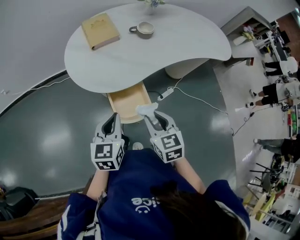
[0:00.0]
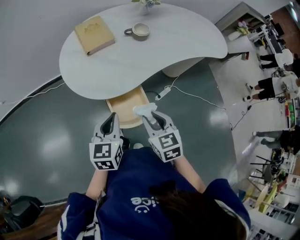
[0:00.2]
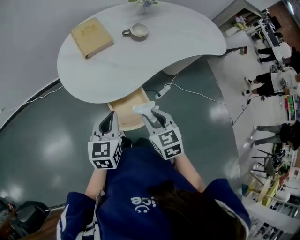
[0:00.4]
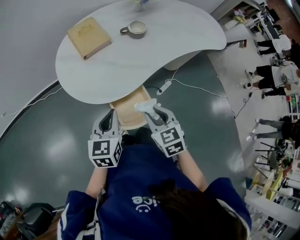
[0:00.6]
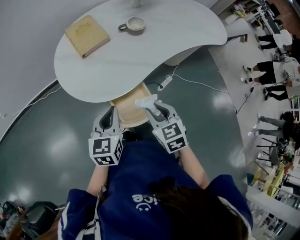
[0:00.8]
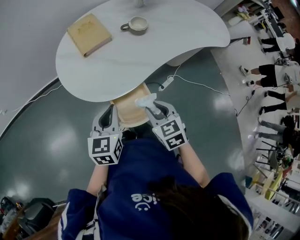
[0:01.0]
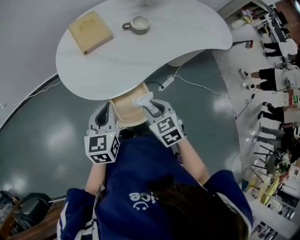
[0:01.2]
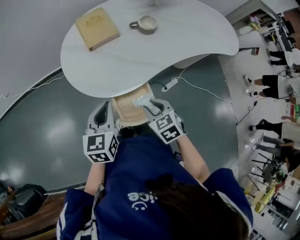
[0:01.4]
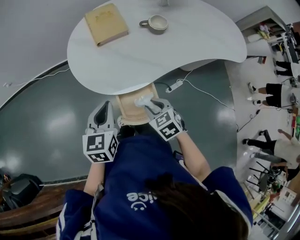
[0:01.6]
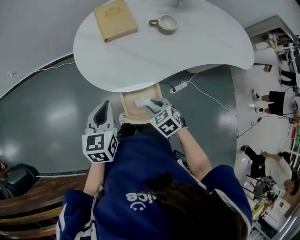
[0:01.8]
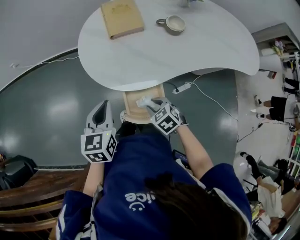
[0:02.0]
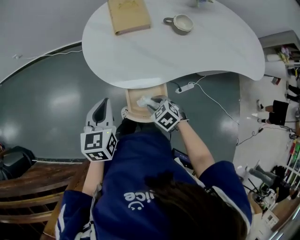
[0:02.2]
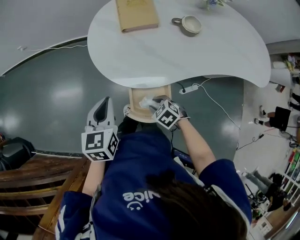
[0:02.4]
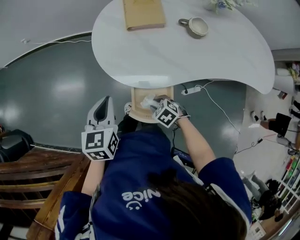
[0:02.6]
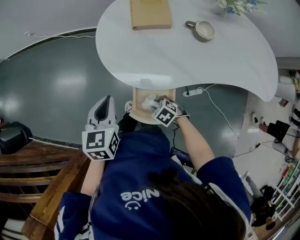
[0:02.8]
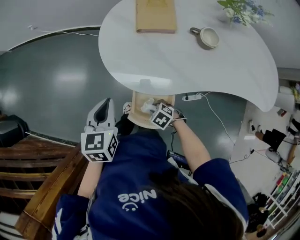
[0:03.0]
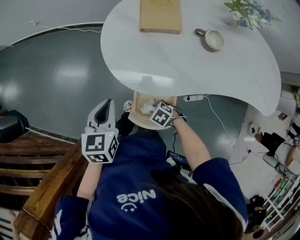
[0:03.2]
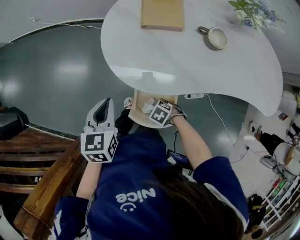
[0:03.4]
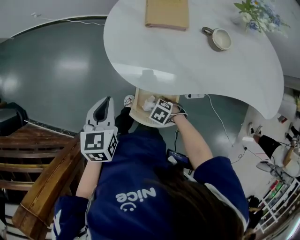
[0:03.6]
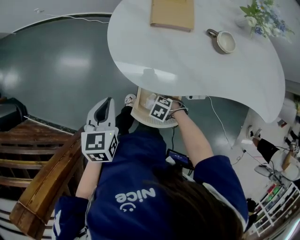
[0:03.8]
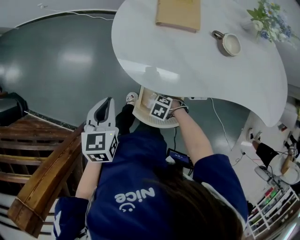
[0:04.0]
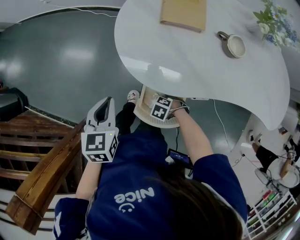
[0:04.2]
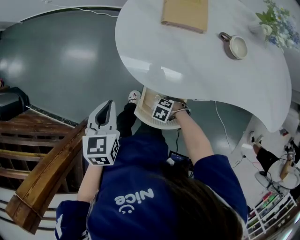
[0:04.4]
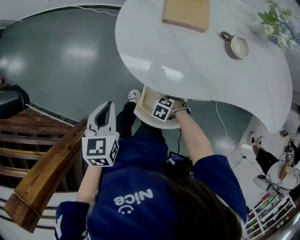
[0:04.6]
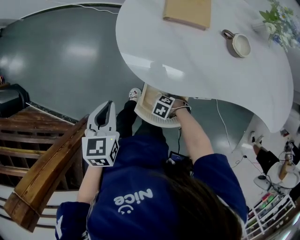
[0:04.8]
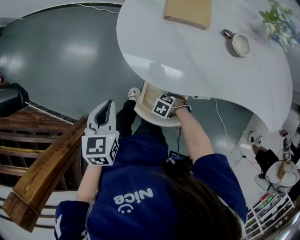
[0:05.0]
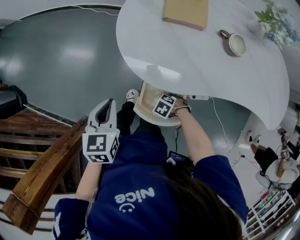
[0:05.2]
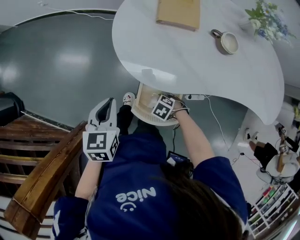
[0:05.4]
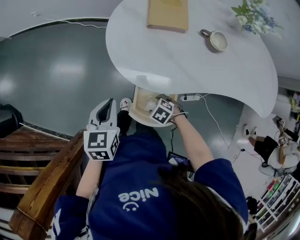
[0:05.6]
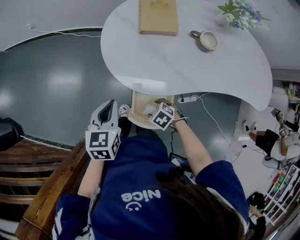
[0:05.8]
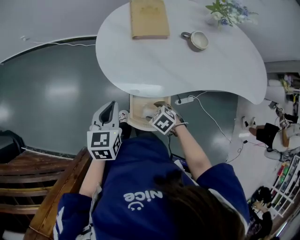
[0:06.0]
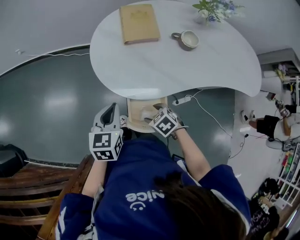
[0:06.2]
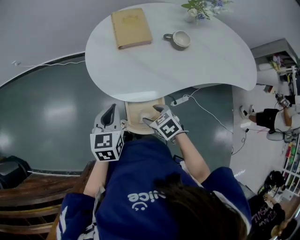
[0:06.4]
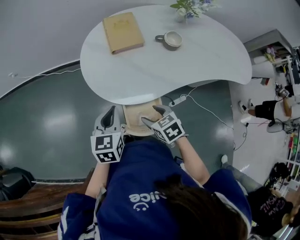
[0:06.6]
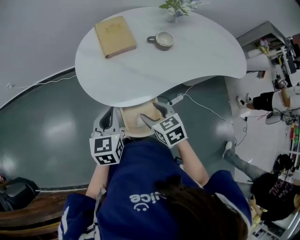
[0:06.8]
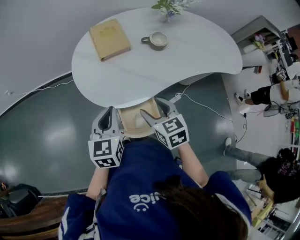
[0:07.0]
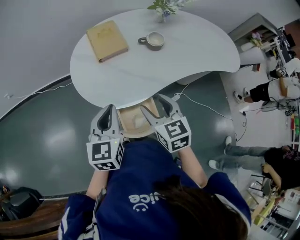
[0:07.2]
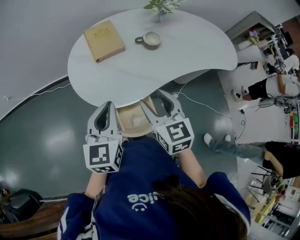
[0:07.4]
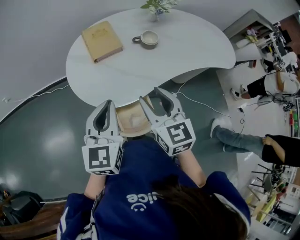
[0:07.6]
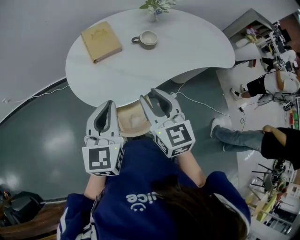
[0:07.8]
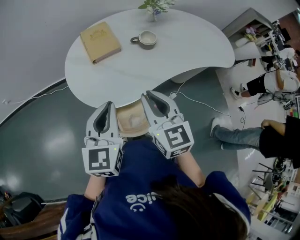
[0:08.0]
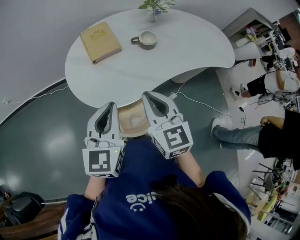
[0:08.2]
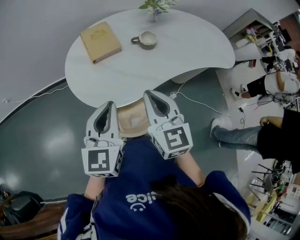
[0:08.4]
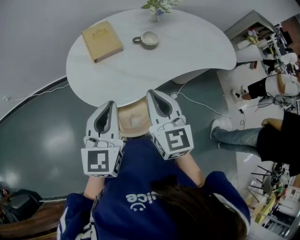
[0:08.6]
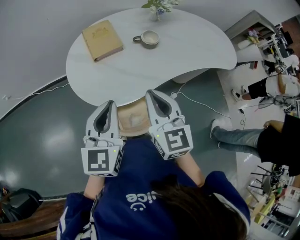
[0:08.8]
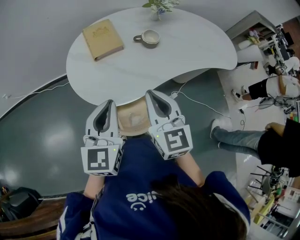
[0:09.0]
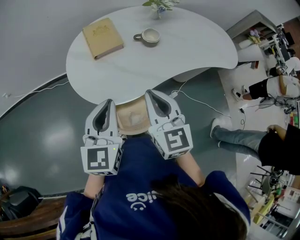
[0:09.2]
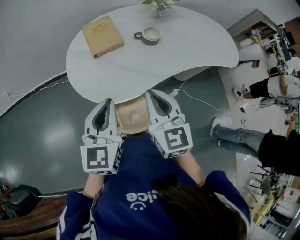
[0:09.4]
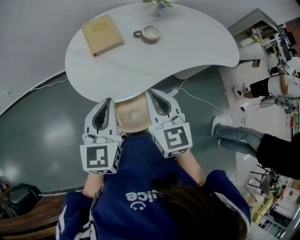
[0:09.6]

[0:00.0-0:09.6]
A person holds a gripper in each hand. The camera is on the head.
0:00.0 to 0:01.6: The right gripper goes roughly 10 cm downward and forward, and swivels approximately 30 degrees; the left gripper goes roughly 5 cm forward.
0:01.6 to 0:03.2: The right gripper shifts some 20 cm downward, and turns by some 50 degrees. Meanwhile the left gripper moves approximately 5 cm, and rotates roughly 20 degrees.
0:03.2 to 0:04.8: The right gripper shifts roughly 5 cm downward, and changes its angle by roughly 20 degrees. The left gripper moves roughly 5 cm.
0:04.8 to 0:06.4: The left gripper shifts by roughly 10 cm, and changes its angle by some 20 degrees, while the right gripper is displaced upward by approximately 20 cm, changes its angle by some 60 degrees, and opens its fingers.
0:06.4 to 0:08.0: The left gripper moves upward, some 15 cm, and swivels about 20 degrees; the right gripper is displaced upward by some 25 cm, tilts its fingers approximately 40 degrees upward, and closes its fingers.
0:08.0 to 0:09.6: The grippers move only a little.

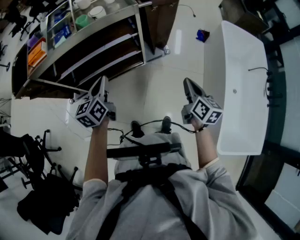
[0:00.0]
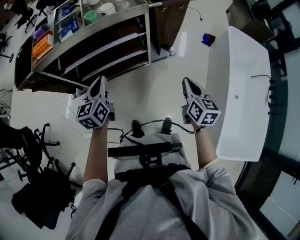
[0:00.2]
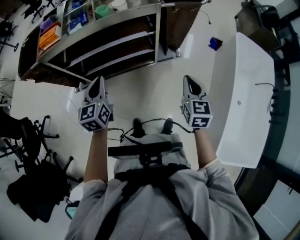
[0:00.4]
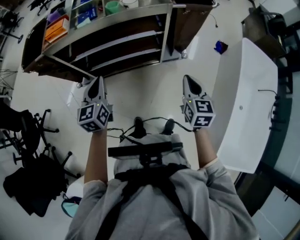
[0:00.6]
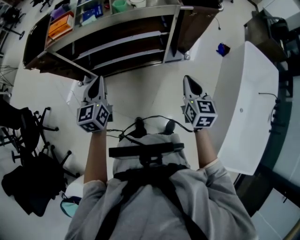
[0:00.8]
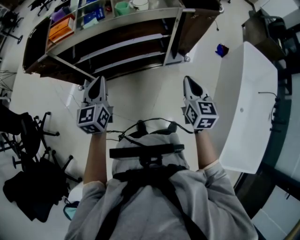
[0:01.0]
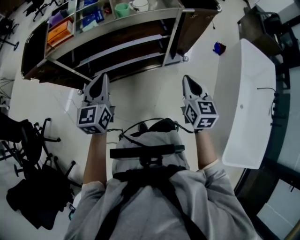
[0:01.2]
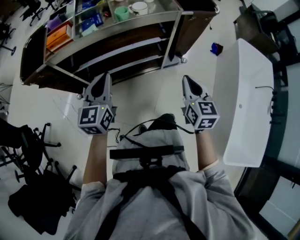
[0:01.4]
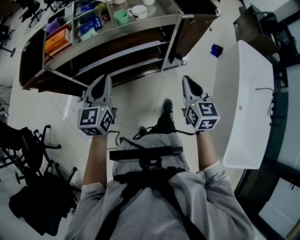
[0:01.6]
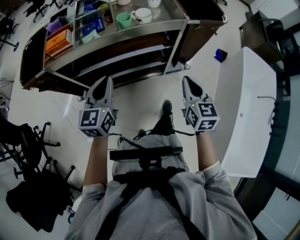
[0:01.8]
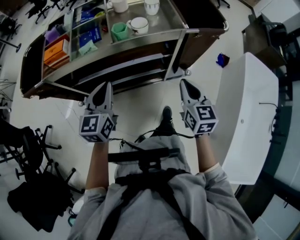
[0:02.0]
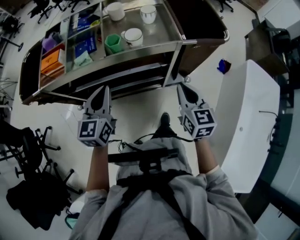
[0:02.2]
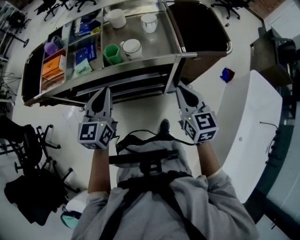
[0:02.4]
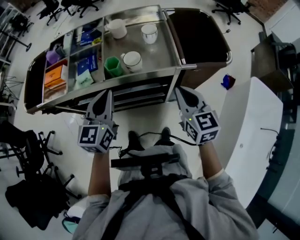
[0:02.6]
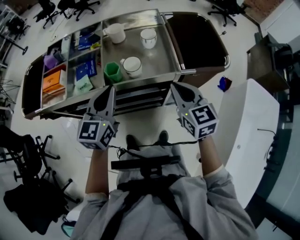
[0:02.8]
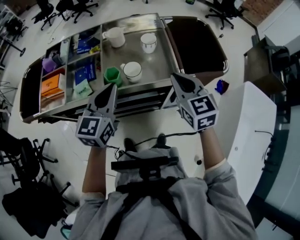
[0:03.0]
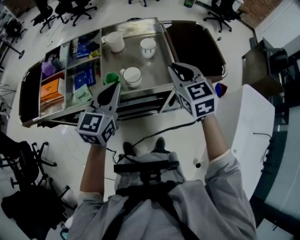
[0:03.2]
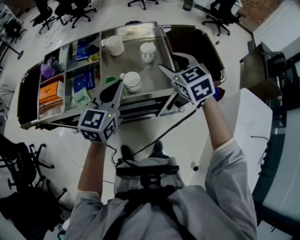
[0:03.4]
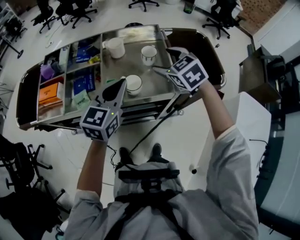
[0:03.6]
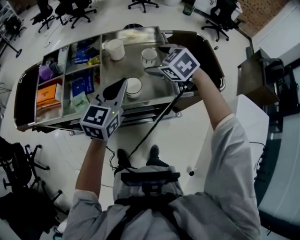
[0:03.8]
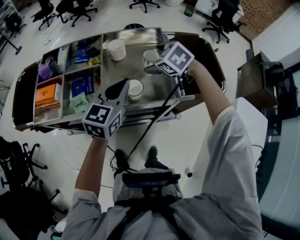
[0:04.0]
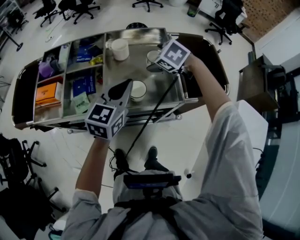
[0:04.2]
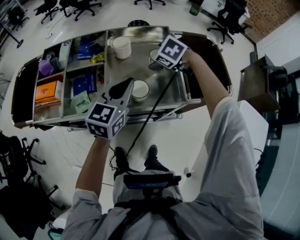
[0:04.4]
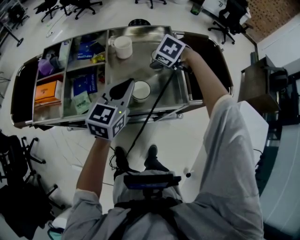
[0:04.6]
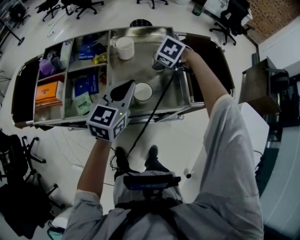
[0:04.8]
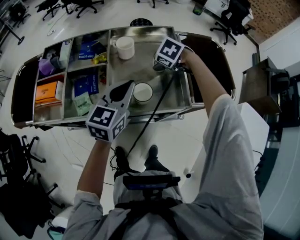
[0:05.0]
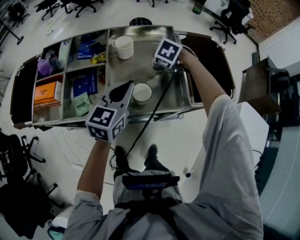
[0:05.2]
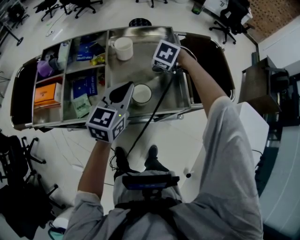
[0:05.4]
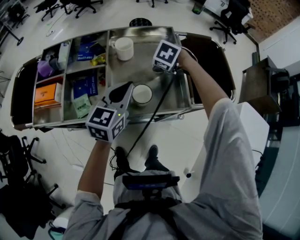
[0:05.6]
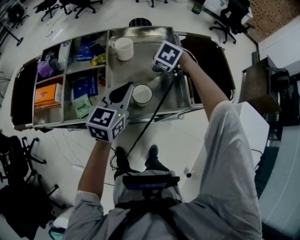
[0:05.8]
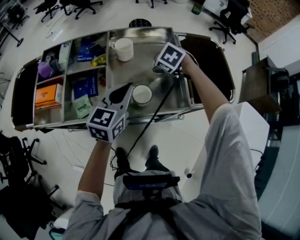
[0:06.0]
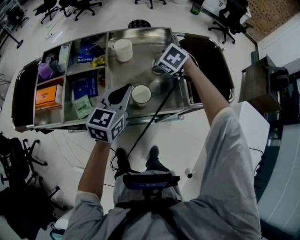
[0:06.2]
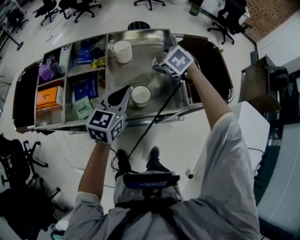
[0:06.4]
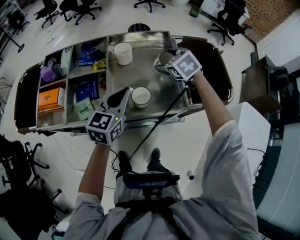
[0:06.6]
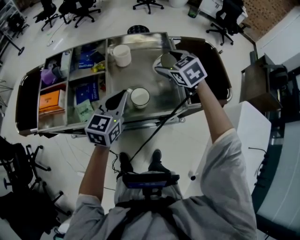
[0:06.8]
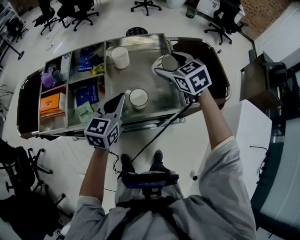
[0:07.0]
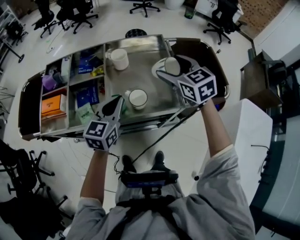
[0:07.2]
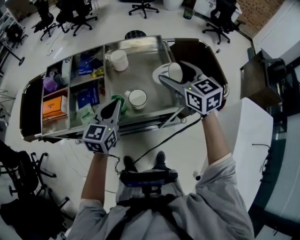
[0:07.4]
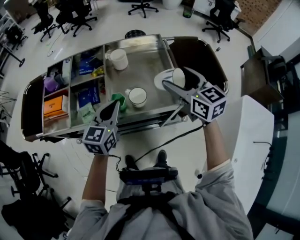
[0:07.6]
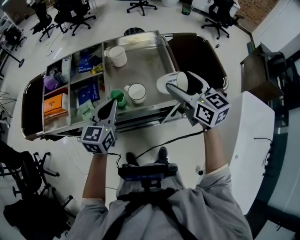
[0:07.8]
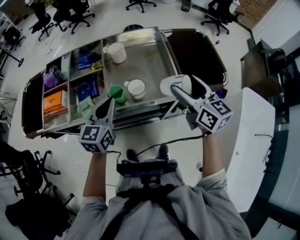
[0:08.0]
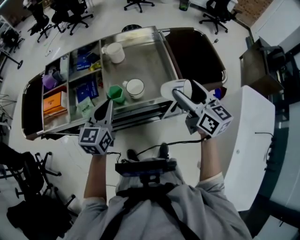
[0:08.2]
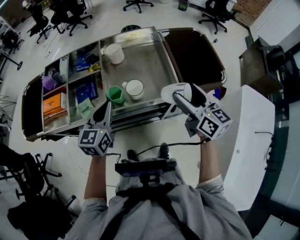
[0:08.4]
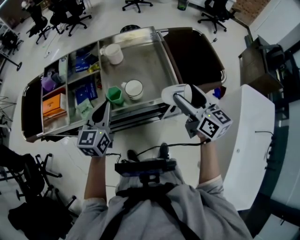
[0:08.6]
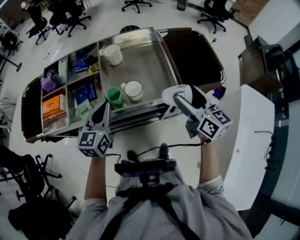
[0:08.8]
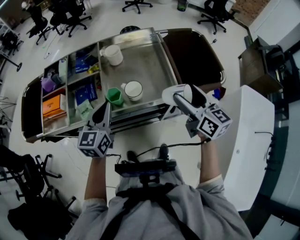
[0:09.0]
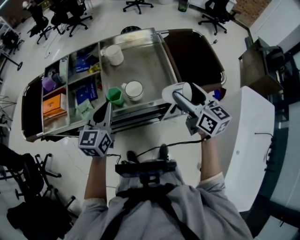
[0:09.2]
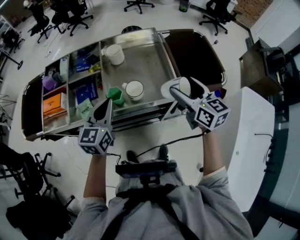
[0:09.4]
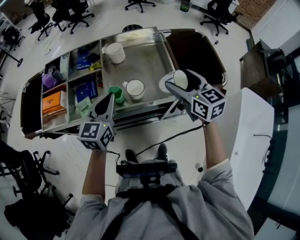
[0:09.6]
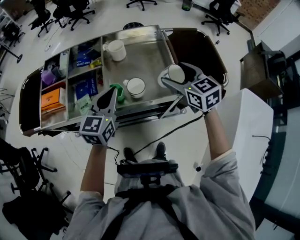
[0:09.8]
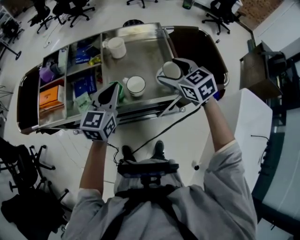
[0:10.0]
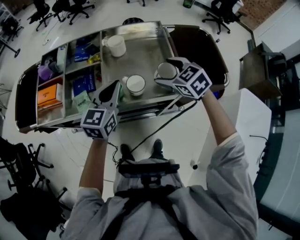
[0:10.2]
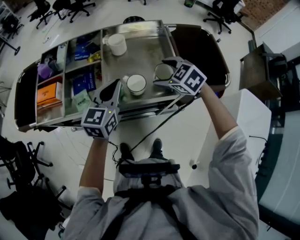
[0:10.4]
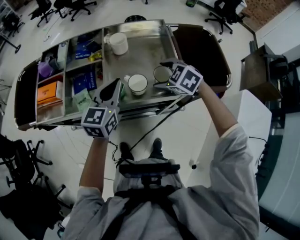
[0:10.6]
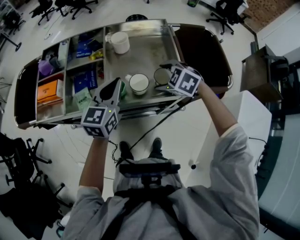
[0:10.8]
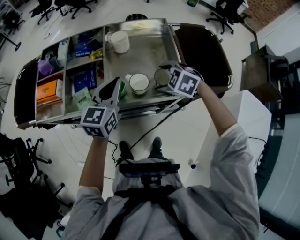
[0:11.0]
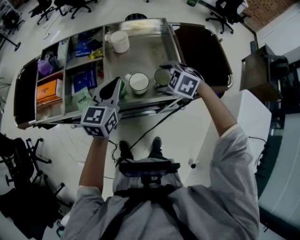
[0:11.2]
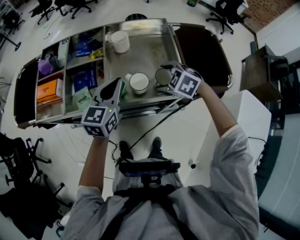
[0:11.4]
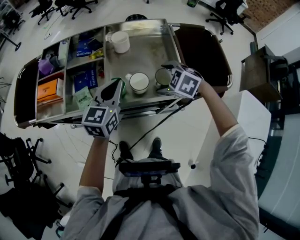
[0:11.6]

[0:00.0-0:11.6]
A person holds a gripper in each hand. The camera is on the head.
0:00.0 to 0:01.4: The right gripper travels to the left by about 20 cm, and changes its angle by approximately 30 degrees. The left gripper travels to the left and upward by approximately 15 cm, and changes its angle by about 20 degrees.
0:01.4 to 0:02.8: The right gripper heads forward, covering about 30 cm, and turns by about 20 degrees, while the left gripper is displaced forward and to the right by about 25 cm.
0:02.8 to 0:04.4: The right gripper goes approximately 30 cm forward, points its fingers about 40 degrees further downward, and opens its fingers. The left gripper goes some 10 cm forward.
0:04.4 to 0:05.8: The grippers stay close to where they were, moving slightly.
0:05.8 to 0:07.2: The right gripper shifts approximately 20 cm upward and backward, and tips its fingers upward by roughly 40 degrees.
0:07.2 to 0:08.8: The left gripper moves some 5 cm, while the right gripper travels backward and to the right by roughly 15 cm, and swivels roughly 40 degrees.
0:08.8 to 0:10.2: The right gripper shifts approximately 15 cm forward, to the left and downward, and tips its fingers downward by approximately 30 degrees. The left gripper changes place by about 5 cm.
0:10.2 to 0:11.6: The right gripper travels downward by some 5 cm, and swivels some 30 degrees.

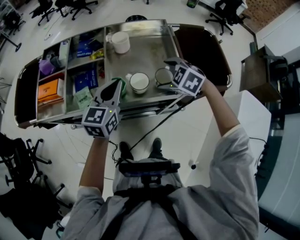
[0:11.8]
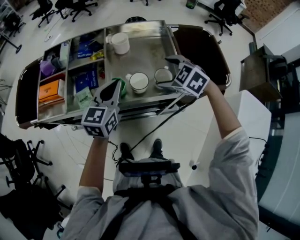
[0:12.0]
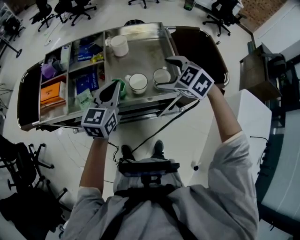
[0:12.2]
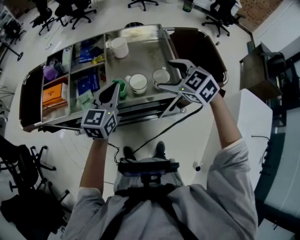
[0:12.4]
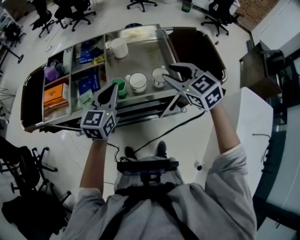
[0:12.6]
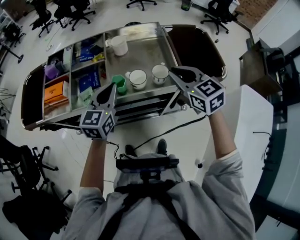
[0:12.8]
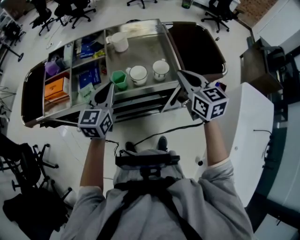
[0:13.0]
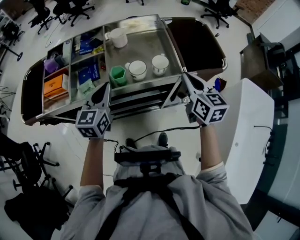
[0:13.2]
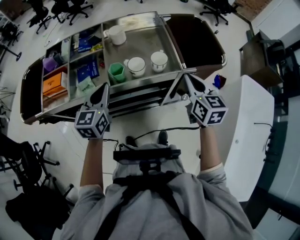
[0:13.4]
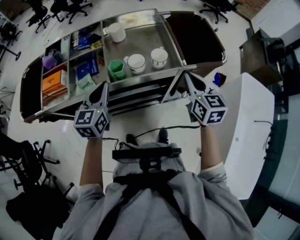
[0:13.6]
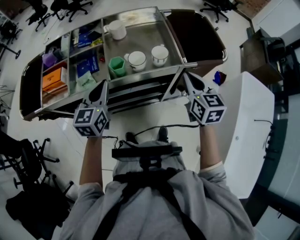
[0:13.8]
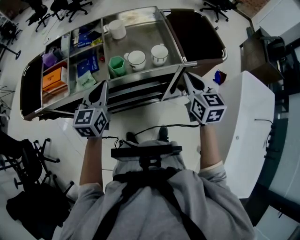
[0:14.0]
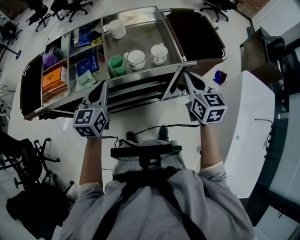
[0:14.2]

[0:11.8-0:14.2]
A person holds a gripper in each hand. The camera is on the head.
0:11.8 to 0:13.0: The right gripper is displaced upward, backward and to the right by approximately 15 cm, points its fingers some 40 degrees further upward, and closes up. Meanwhile the left gripper ends up some 5 cm from where it was.
0:13.0 to 0:14.2: The right gripper travels backward by roughly 5 cm, while the left gripper moves some 5 cm.
